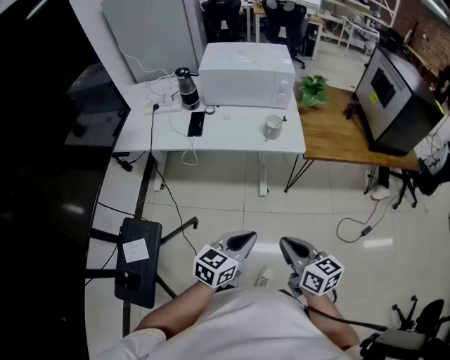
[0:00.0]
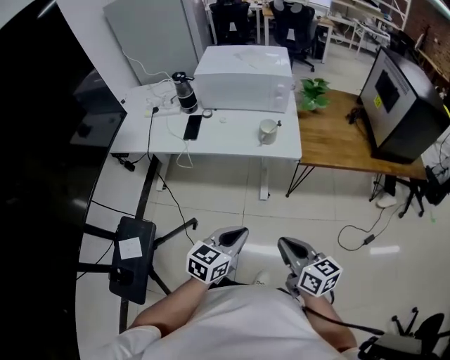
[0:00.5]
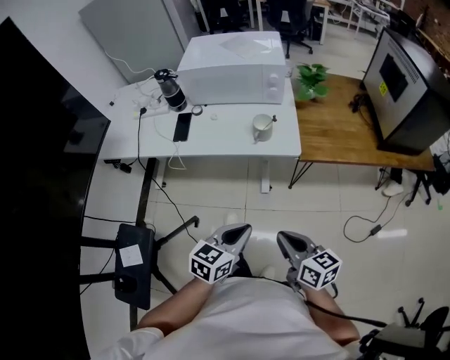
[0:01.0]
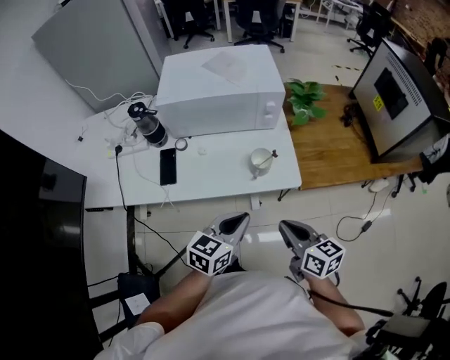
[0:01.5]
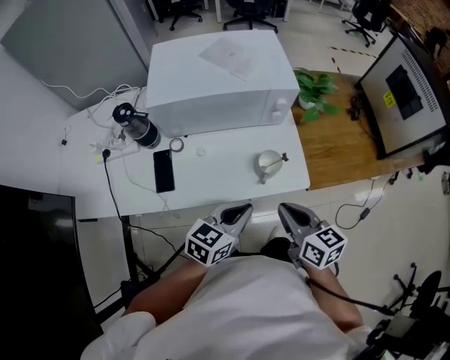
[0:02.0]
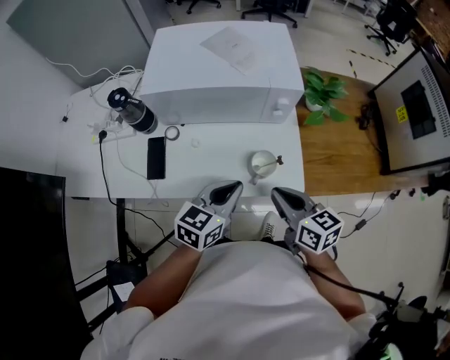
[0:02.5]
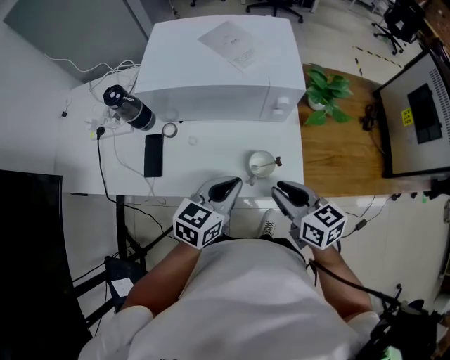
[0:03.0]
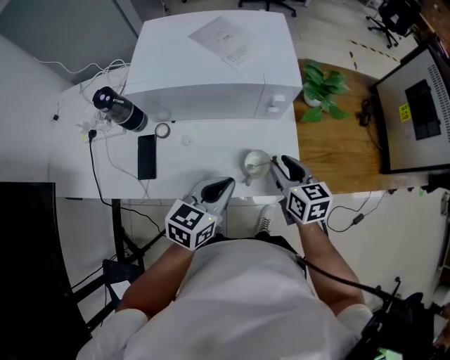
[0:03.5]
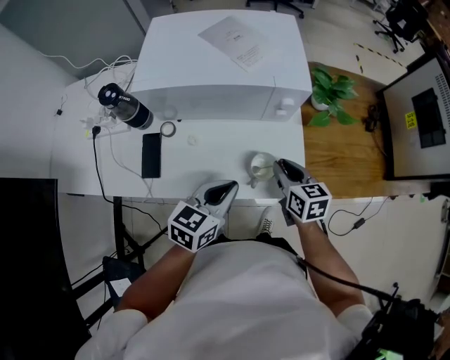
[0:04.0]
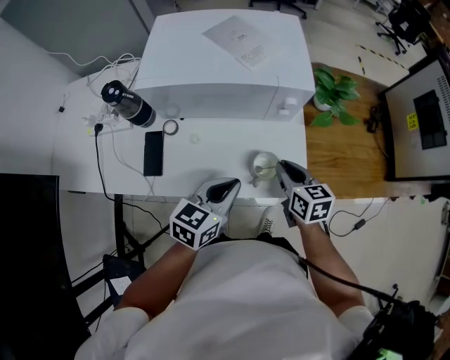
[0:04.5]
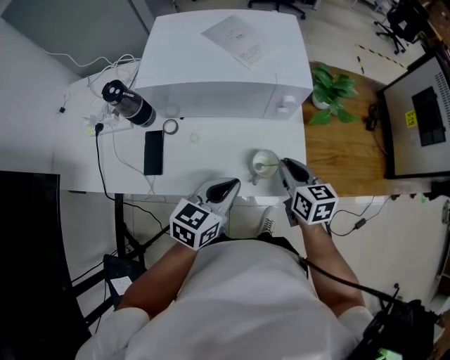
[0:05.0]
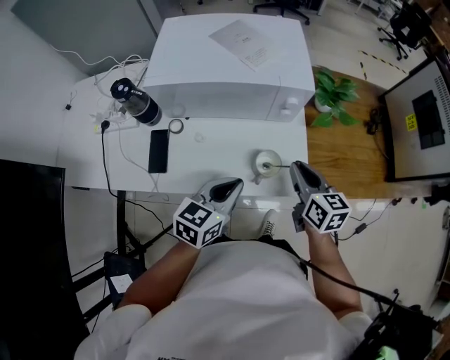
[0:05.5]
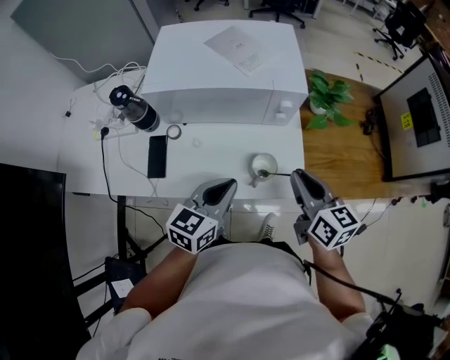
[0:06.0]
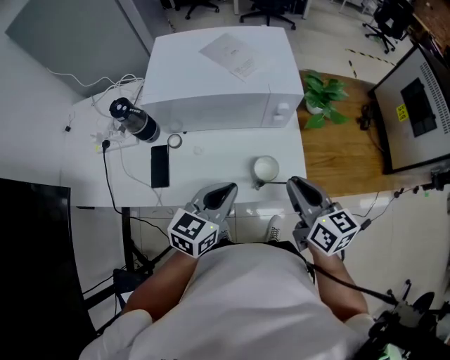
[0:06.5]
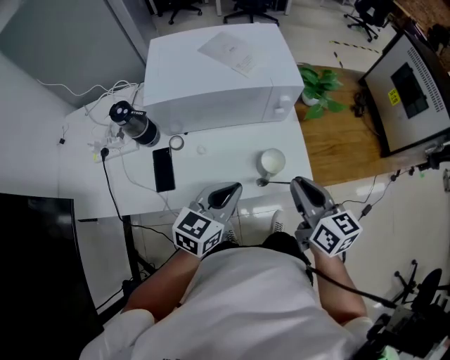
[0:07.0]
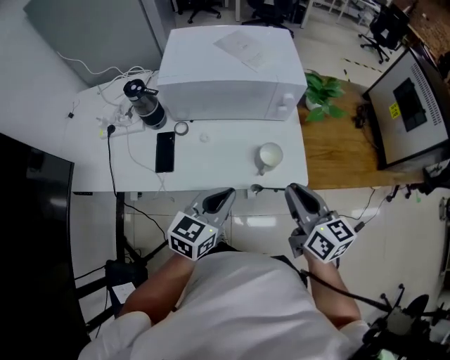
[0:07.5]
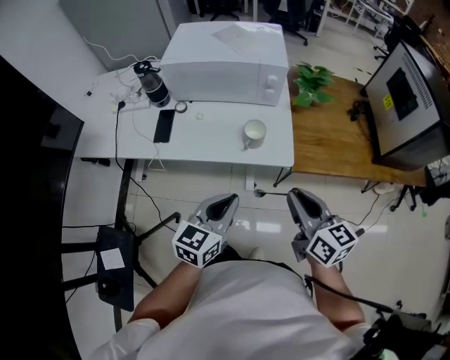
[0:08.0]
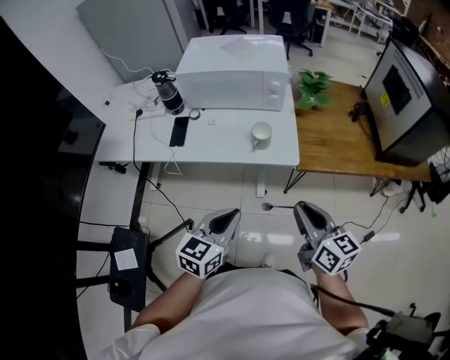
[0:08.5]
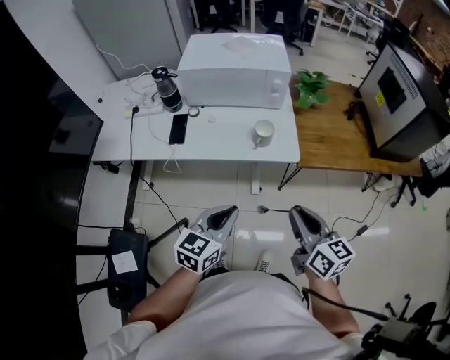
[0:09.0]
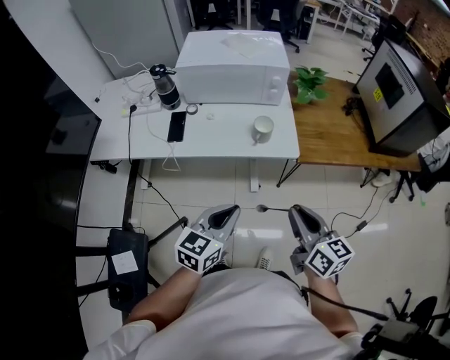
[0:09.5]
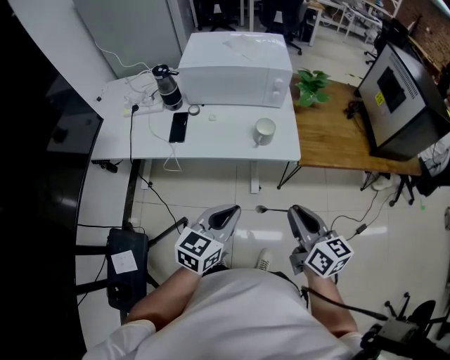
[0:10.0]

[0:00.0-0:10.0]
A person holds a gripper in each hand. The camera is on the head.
0:00.0 to 0:02.0: The two grippers go about 40 cm forward.
0:02.0 to 0:04.0: The left gripper moves forward, roughly 10 cm; the right gripper heads forward and downward, covering roughly 20 cm.
0:04.0 to 0:06.0: The right gripper travels upward by about 10 cm.
0:06.0 to 0:08.0: The grippers both shift backward by about 20 cm.
0:08.0 to 0:10.0: The right gripper heads backward, covering some 10 cm, while the left gripper shifts roughly 10 cm backward and to the left.

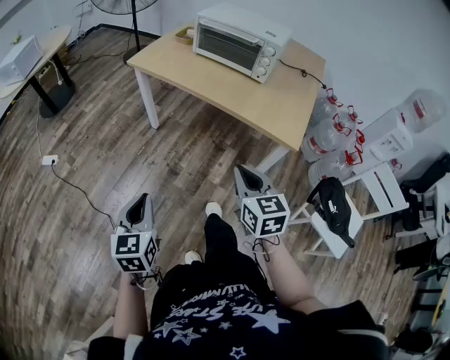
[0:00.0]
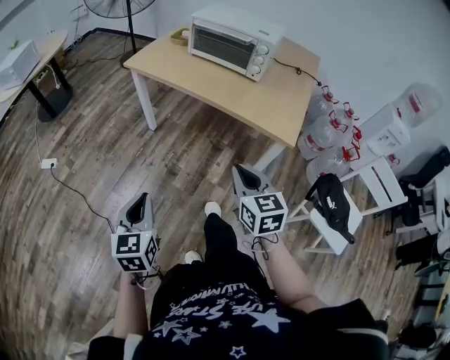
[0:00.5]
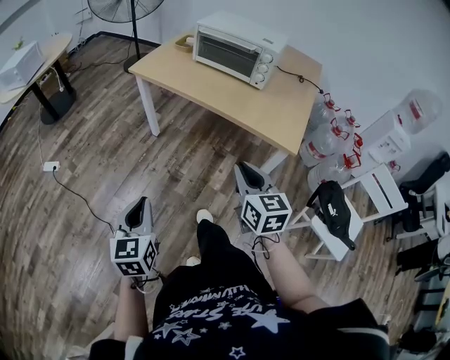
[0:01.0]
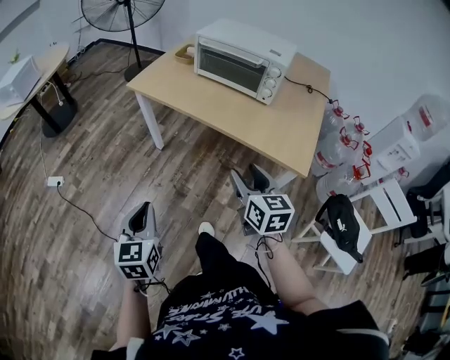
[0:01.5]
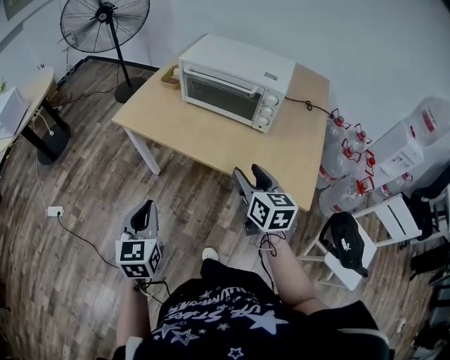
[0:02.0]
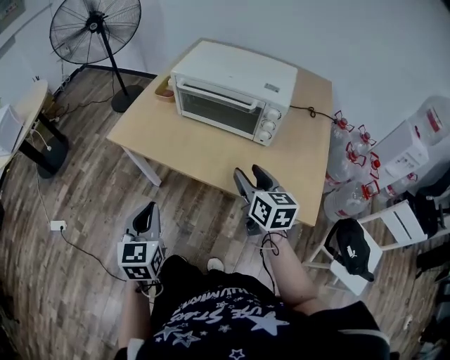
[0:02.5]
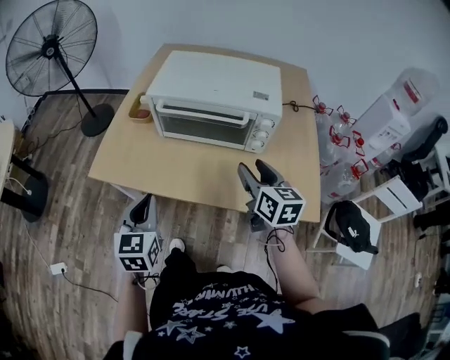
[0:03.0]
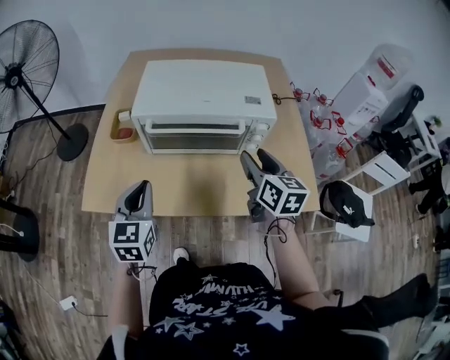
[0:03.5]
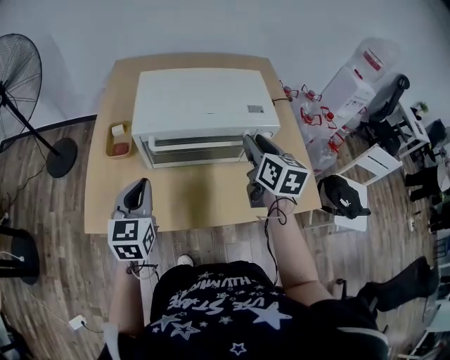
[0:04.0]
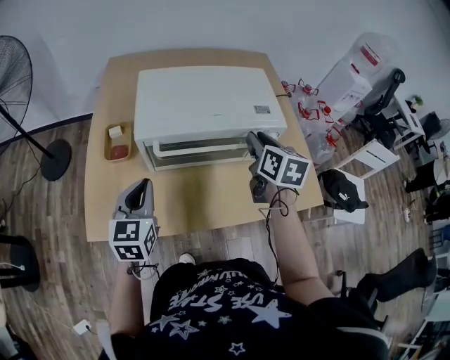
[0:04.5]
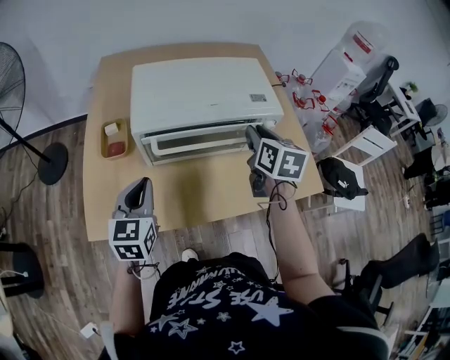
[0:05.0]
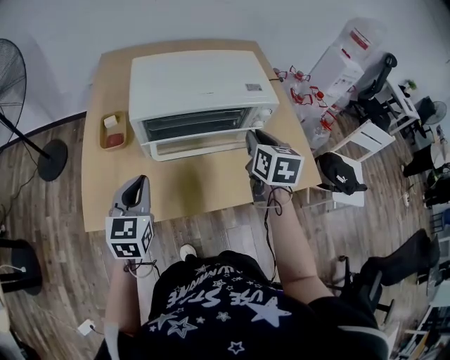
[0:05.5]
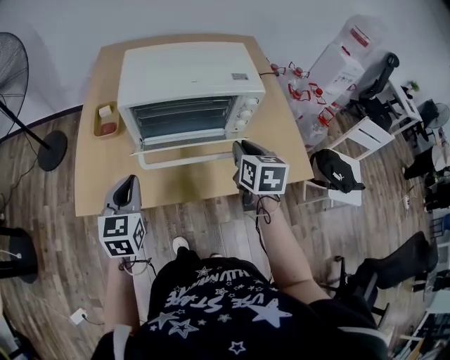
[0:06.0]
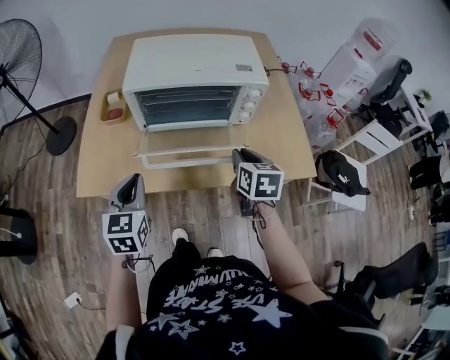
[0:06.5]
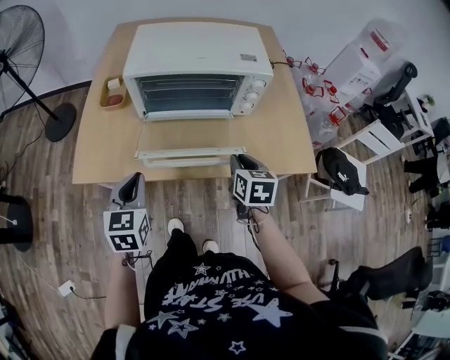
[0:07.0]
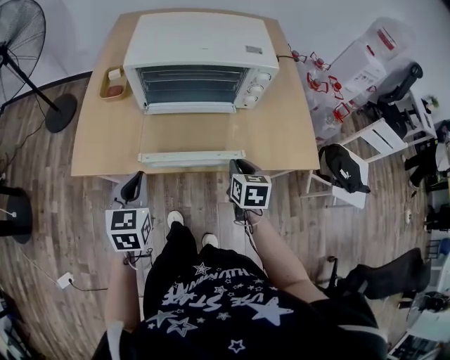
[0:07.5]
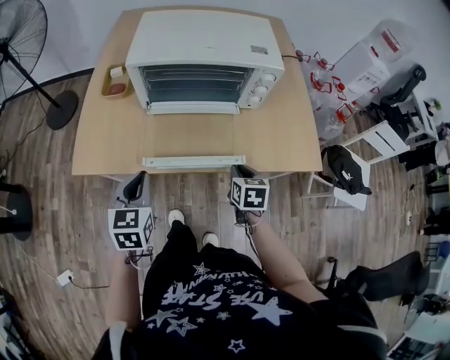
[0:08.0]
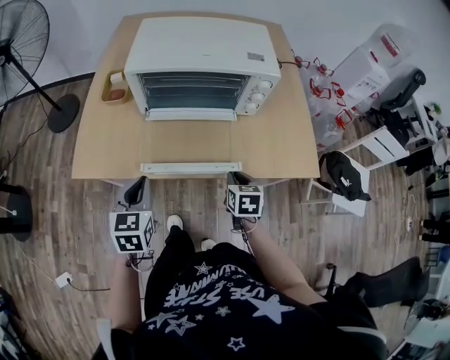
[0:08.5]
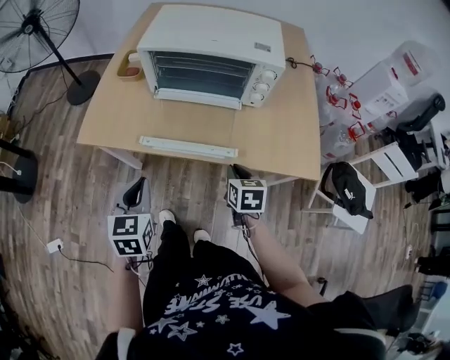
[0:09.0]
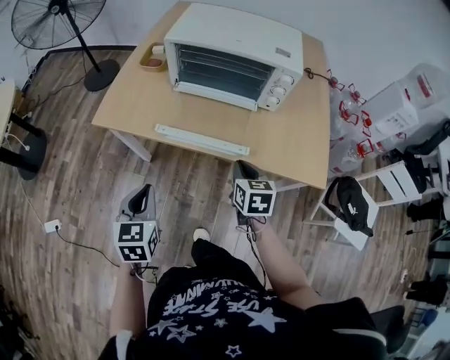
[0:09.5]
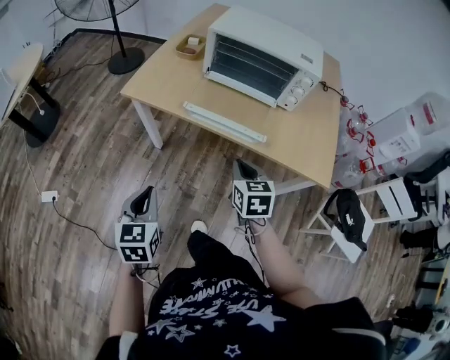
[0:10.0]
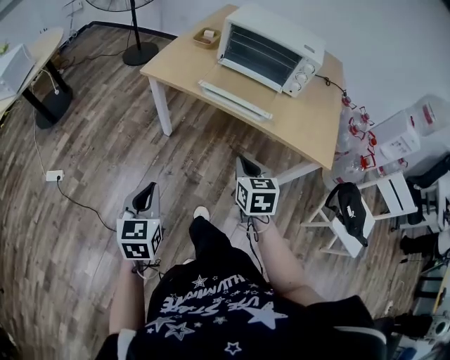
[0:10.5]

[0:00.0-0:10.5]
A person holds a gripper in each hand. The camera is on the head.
0:00.0 to 0:02.0: Both grippers move forward, about 30 cm. The right gripper opens up.
0:02.0 to 0:04.0: The left gripper changes place by roughly 40 cm, and changes its angle by approximately 30 degrees, while the right gripper changes place by approximately 25 cm, and changes its angle by approximately 40 degrees.
0:04.0 to 0:06.5: The left gripper is displaced backward by roughly 10 cm. Meanwhile the right gripper is displaced backward and downward by roughly 15 cm.
0:06.5 to 0:08.5: The right gripper moves downward and backward, some 15 cm. The left gripper goes roughly 5 cm downward.
0:08.5 to 0:10.5: The left gripper ends up about 40 cm from where it was, and turns by approximately 30 degrees; the right gripper shifts by some 25 cm, and turns by some 30 degrees.

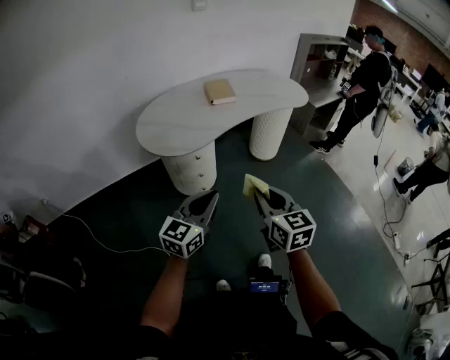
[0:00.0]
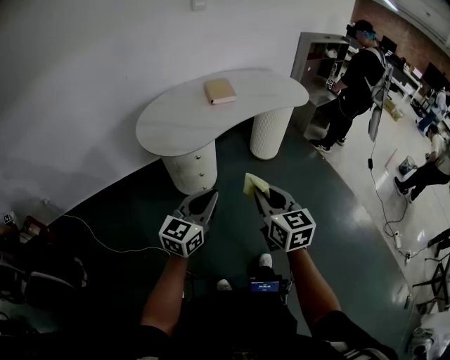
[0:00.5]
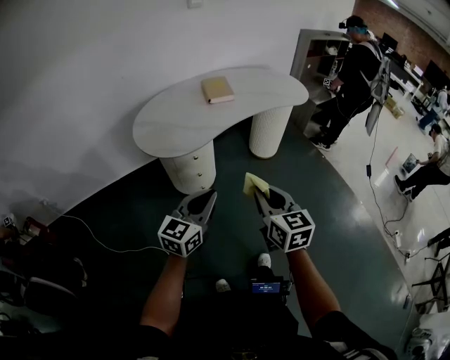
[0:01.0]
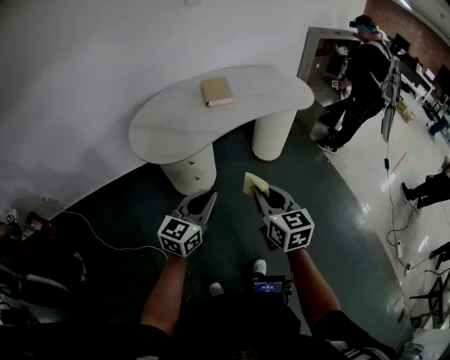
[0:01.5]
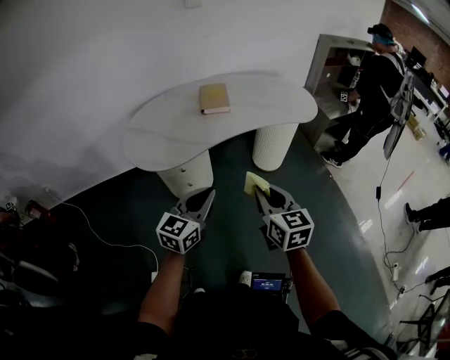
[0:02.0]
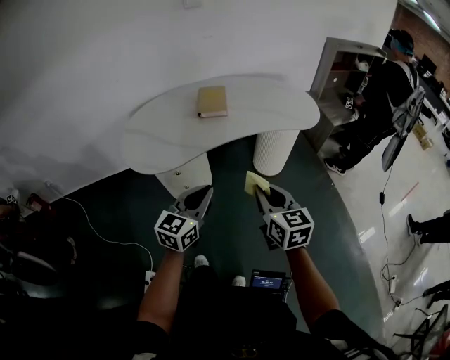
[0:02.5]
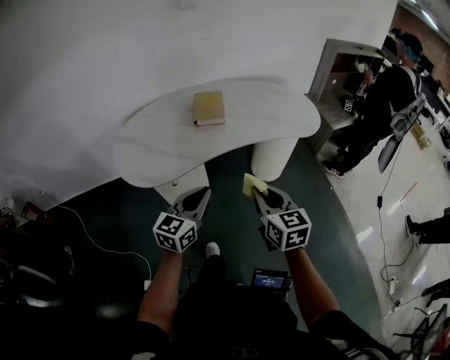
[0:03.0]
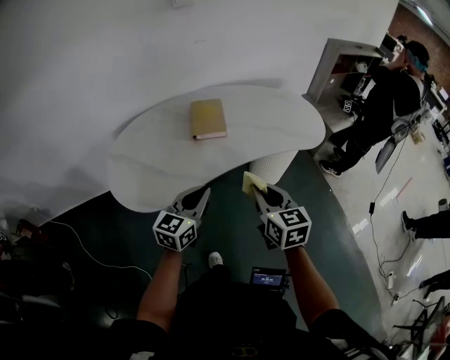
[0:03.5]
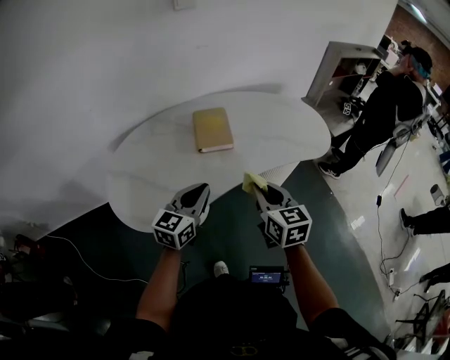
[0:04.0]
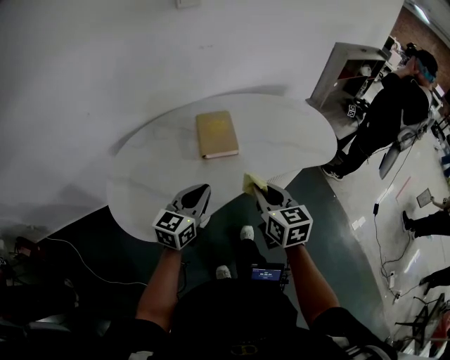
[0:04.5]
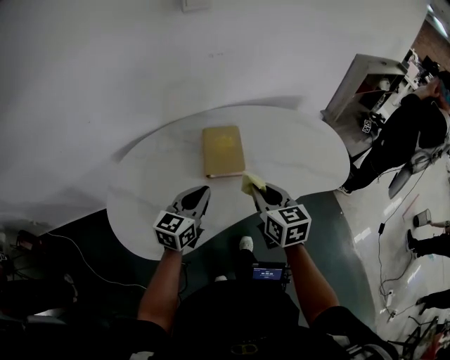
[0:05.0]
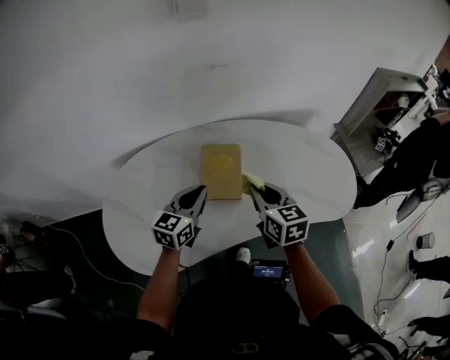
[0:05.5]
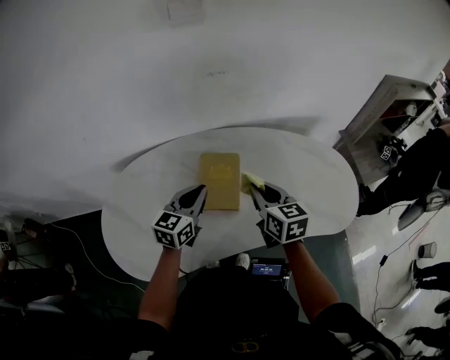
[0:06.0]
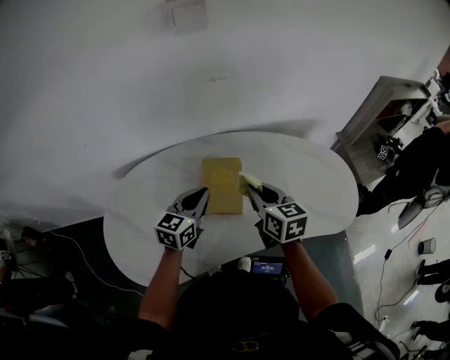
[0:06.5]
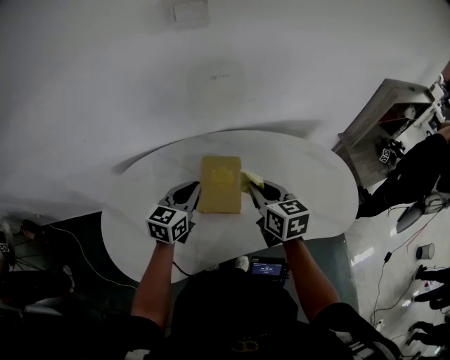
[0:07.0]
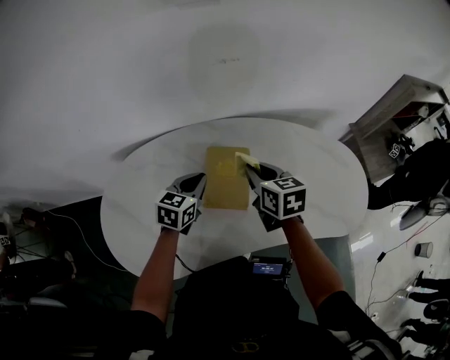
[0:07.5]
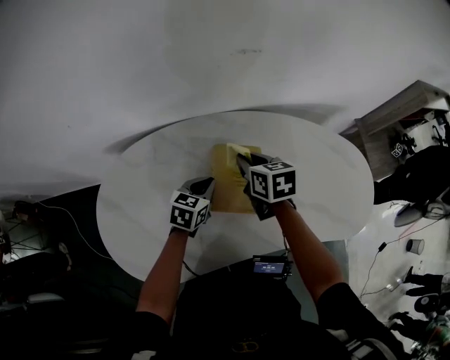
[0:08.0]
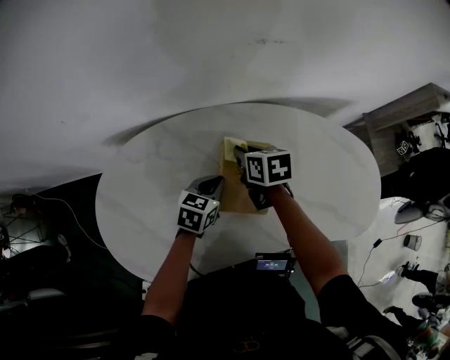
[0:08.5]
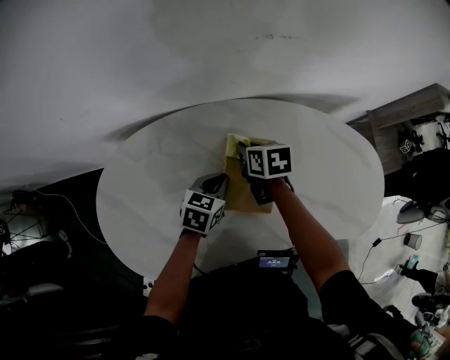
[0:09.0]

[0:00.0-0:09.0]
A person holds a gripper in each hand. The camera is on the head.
0:00.0 to 0:02.0: Both grippers move forward and to the right, some 20 cm.
0:02.0 to 0:04.5: The two grippers go roughly 30 cm forward.
0:04.5 to 0:07.0: Both grippers move forward, some 25 cm.
0:07.0 to 0:09.0: The right gripper heads downward, forward and to the left, covering roughly 25 cm, and changes its angle by some 30 degrees; the left gripper moves downward, approximately 15 cm, and swivels roughly 30 degrees.
